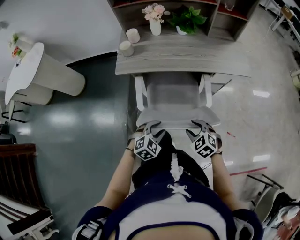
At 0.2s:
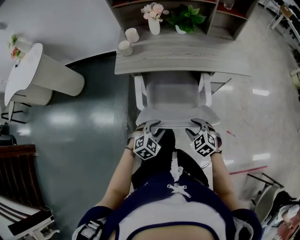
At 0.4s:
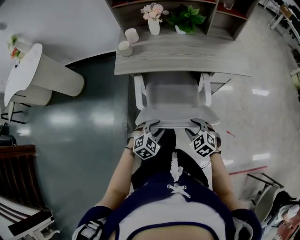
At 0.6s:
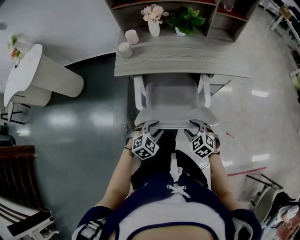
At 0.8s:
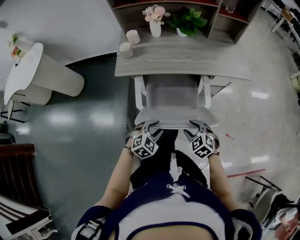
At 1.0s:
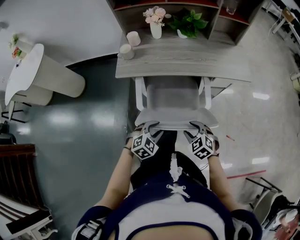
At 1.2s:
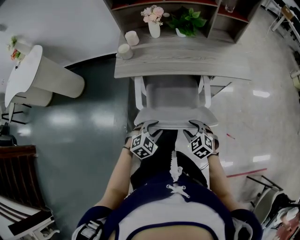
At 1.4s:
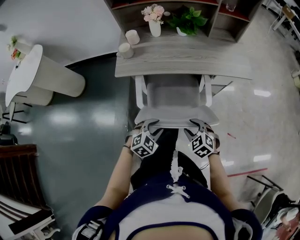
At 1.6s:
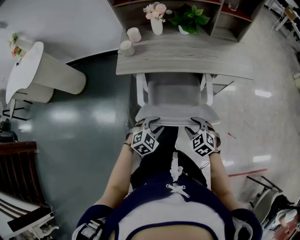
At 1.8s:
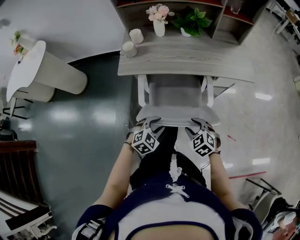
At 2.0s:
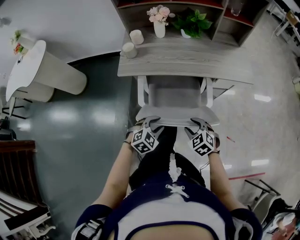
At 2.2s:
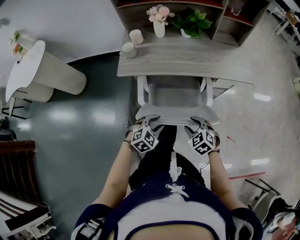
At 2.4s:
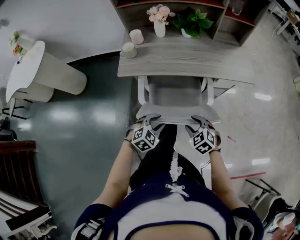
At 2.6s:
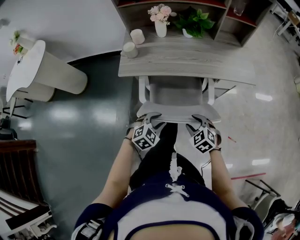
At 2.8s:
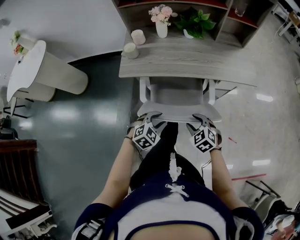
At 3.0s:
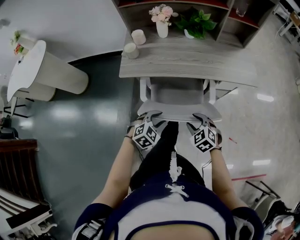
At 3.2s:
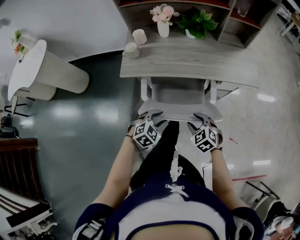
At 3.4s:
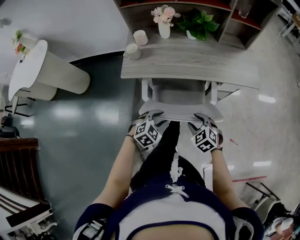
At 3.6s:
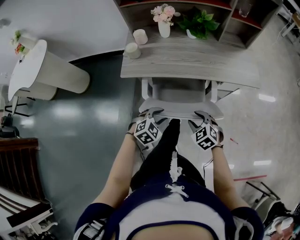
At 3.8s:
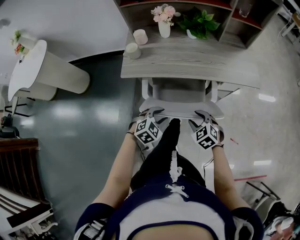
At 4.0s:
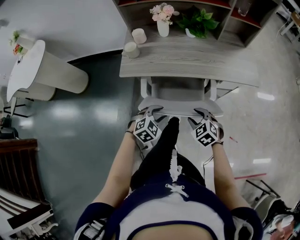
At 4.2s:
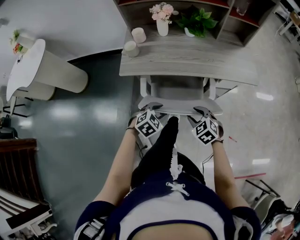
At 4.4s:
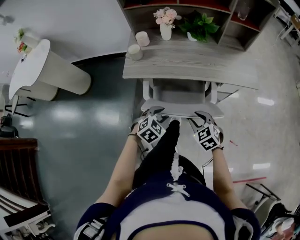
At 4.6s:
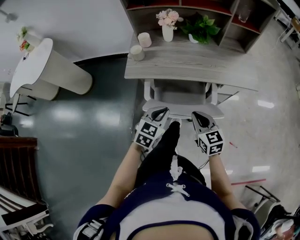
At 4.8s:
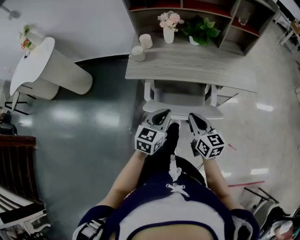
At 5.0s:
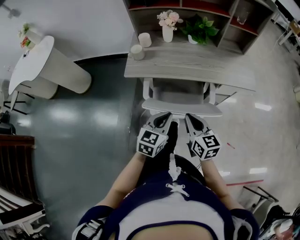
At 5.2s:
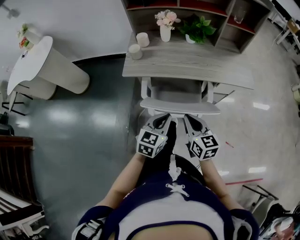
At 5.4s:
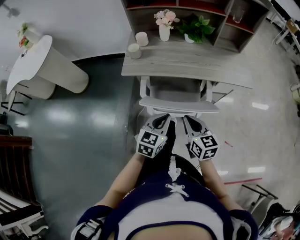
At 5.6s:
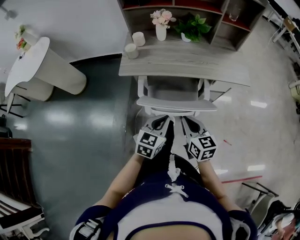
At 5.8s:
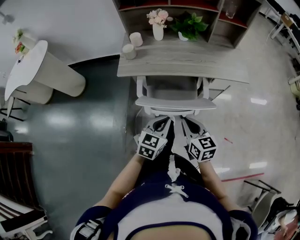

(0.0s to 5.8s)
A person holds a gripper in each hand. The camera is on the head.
0.0s - 1.4s: The grippers move only a little.
1.4s - 2.8s: Both grippers move forward, approximately 5 cm.
2.8s - 4.4s: There are only small adjustments of the grippers.
4.4s - 5.8s: Both grippers travel together upward and backward, about 10 cm. The left gripper rotates roughly 30 degrees, and closes its fingers. The right gripper changes its angle by approximately 40 degrees, and closes its fingers.

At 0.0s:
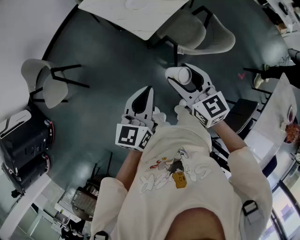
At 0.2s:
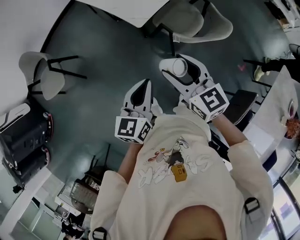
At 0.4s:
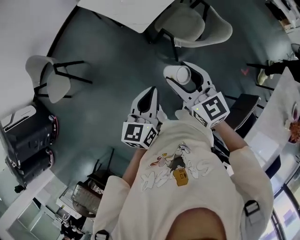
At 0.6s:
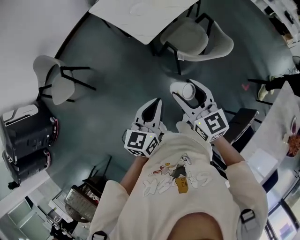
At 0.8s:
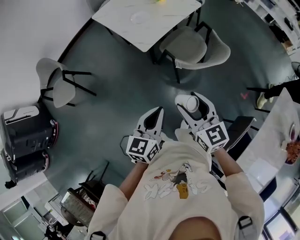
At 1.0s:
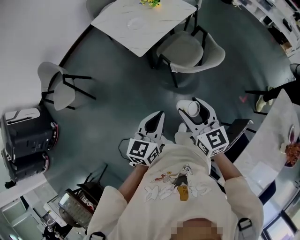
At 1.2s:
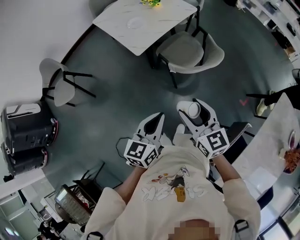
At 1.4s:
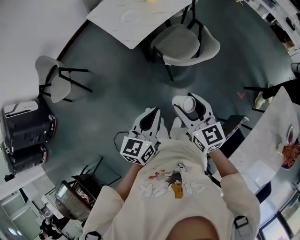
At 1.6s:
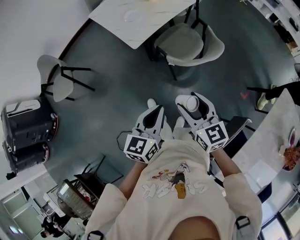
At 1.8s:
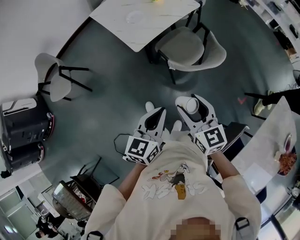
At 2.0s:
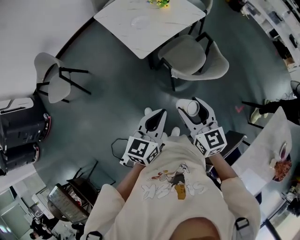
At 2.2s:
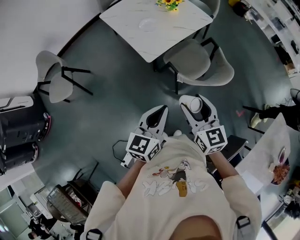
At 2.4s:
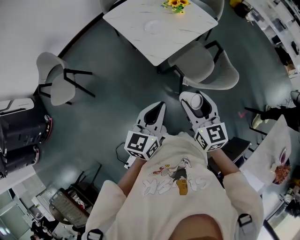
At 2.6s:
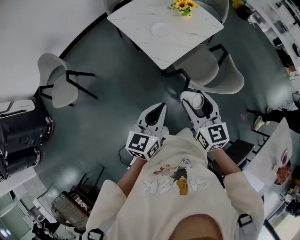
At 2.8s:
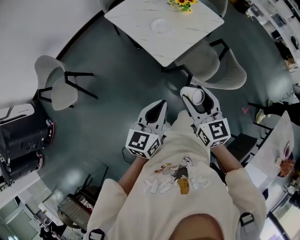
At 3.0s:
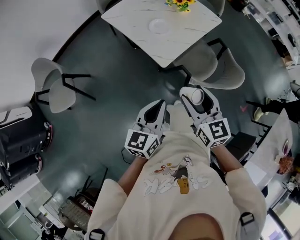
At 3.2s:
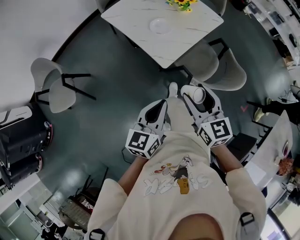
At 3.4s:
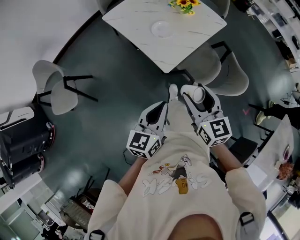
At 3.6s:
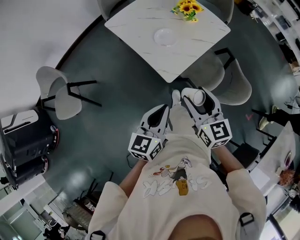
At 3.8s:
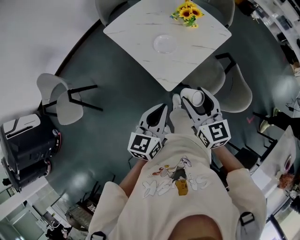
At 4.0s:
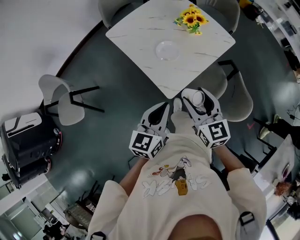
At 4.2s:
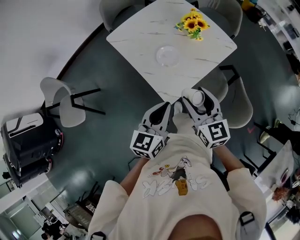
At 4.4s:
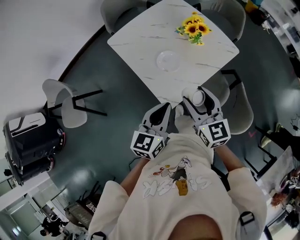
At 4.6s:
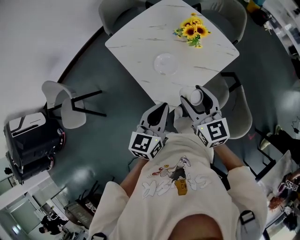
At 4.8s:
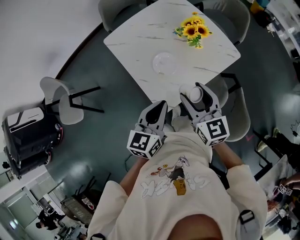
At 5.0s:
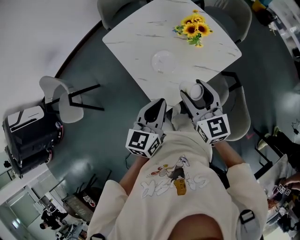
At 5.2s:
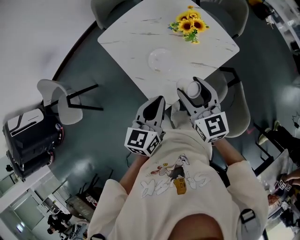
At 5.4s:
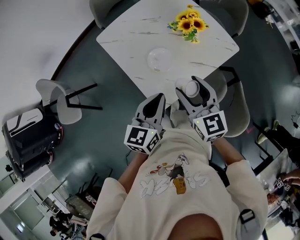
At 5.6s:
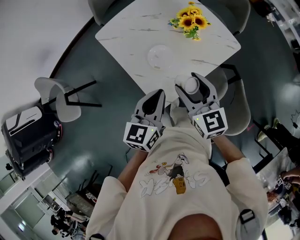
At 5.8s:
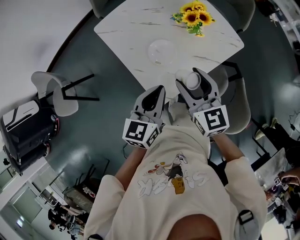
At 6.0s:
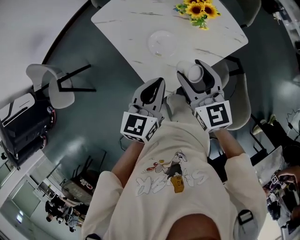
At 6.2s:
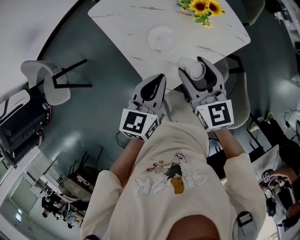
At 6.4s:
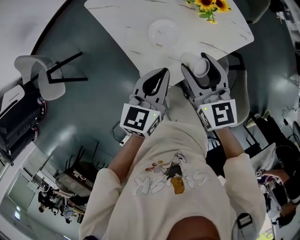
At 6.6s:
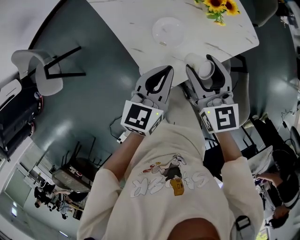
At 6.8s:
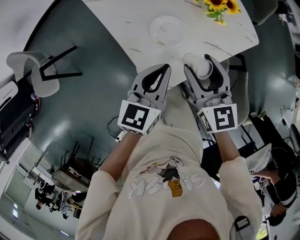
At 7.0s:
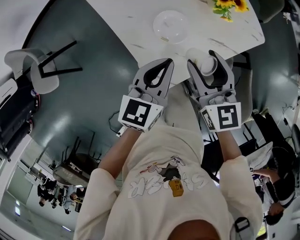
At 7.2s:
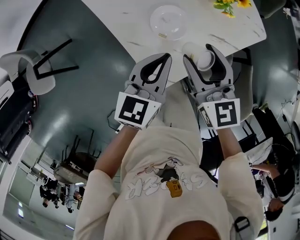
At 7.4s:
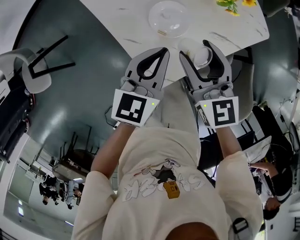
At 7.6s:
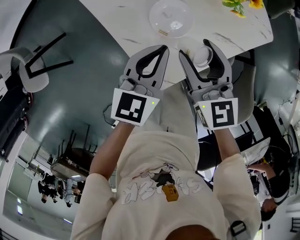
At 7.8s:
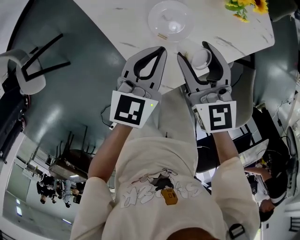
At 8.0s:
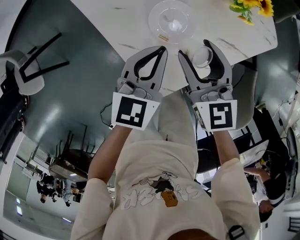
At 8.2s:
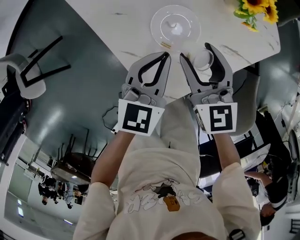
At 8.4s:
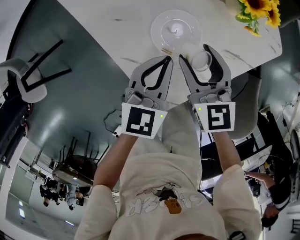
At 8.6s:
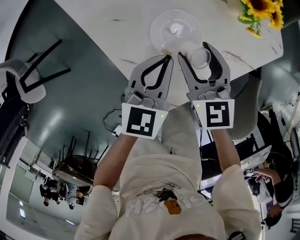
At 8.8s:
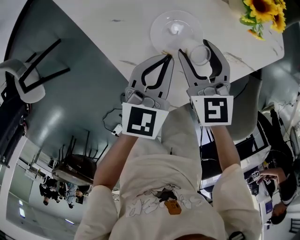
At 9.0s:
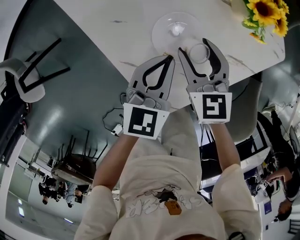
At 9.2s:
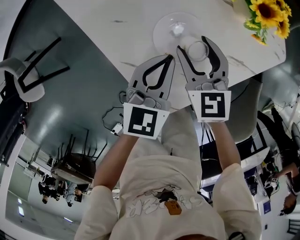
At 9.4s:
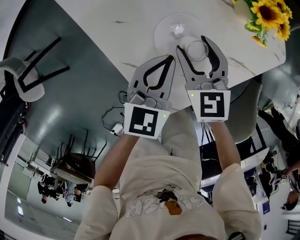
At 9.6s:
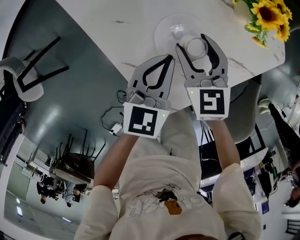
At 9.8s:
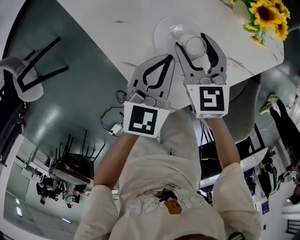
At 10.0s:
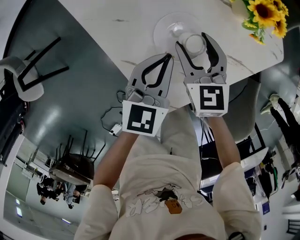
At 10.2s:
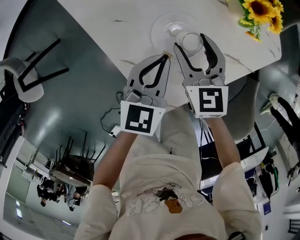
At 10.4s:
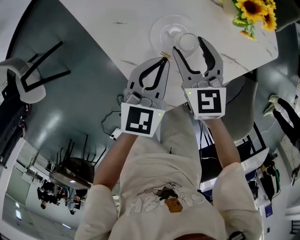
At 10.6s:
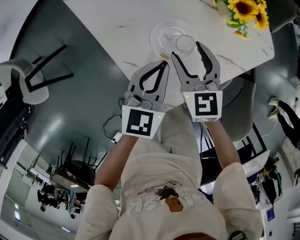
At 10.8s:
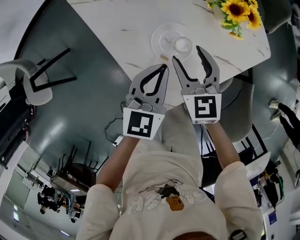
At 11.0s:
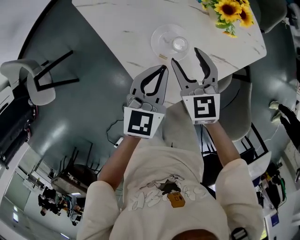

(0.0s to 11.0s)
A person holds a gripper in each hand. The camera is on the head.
0.0s - 1.6s: Both grippers travel together to the right and backward, approximately 25 cm.
1.6s - 3.2s: Both grippers travel together to the left and forward, approximately 30 cm.
3.2s - 4.8s: Both grippers move forward, some 30 cm.
4.8s - 6.2s: Both grippers move forward, about 5 cm.
6.2s - 7.8s: Both grippers travel together downward and forward, roughly 15 cm.
7.8s - 9.4s: The right gripper travels downward and forward by some 15 cm. The left gripper travels downward by approximately 5 cm.
9.4s - 11.0s: Both grippers travel together upward, some 10 cm.

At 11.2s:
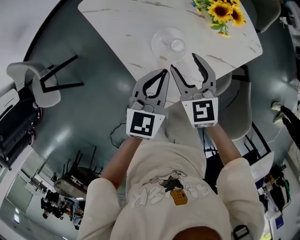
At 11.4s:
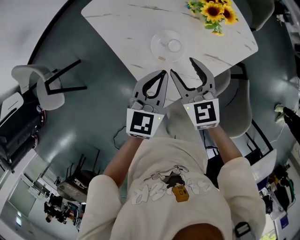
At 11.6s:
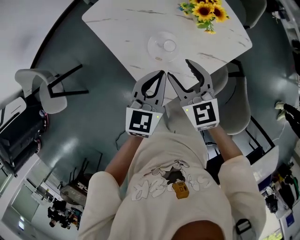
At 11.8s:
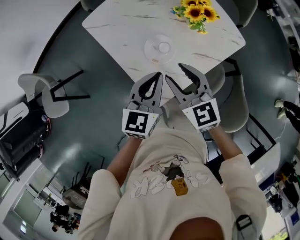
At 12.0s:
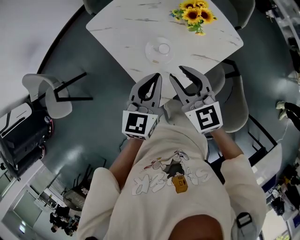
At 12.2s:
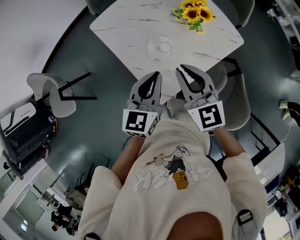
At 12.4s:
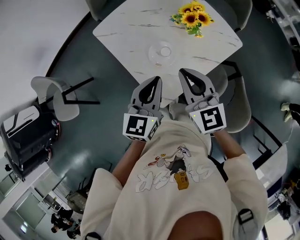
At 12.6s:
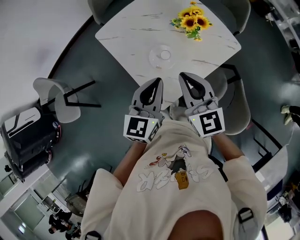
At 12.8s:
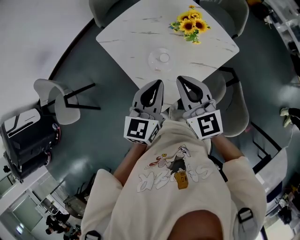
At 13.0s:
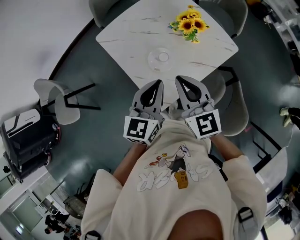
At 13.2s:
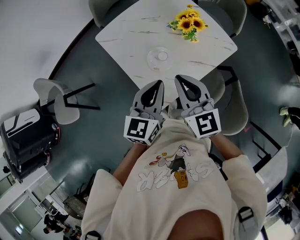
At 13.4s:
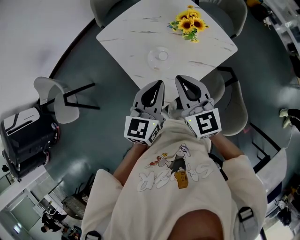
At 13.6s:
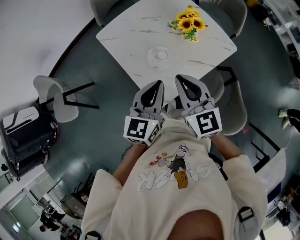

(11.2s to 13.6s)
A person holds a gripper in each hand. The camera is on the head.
11.2s - 12.4s: The grippers both shift upward and backward by roughly 15 cm. The right gripper closes up.
12.4s - 13.6s: The grippers make only small movements.

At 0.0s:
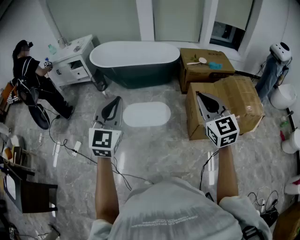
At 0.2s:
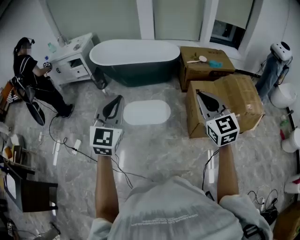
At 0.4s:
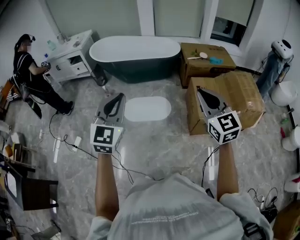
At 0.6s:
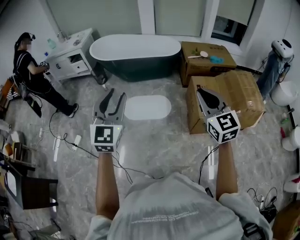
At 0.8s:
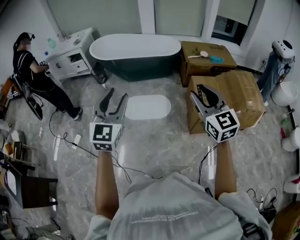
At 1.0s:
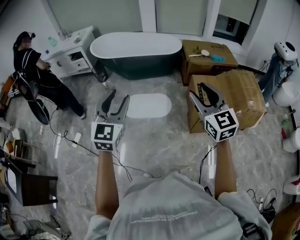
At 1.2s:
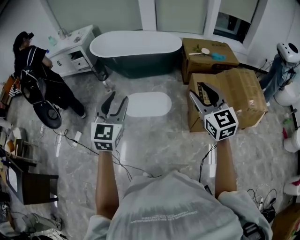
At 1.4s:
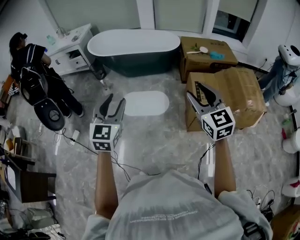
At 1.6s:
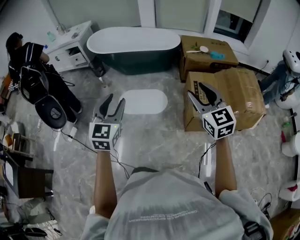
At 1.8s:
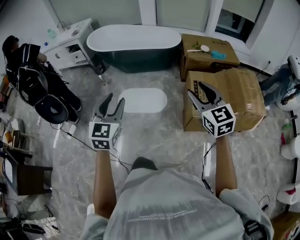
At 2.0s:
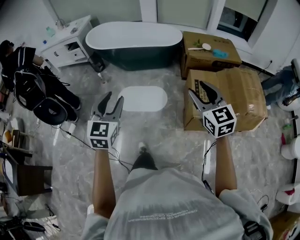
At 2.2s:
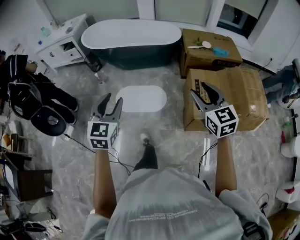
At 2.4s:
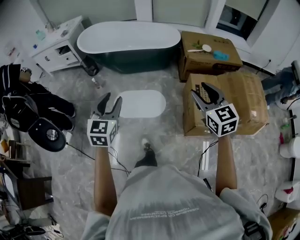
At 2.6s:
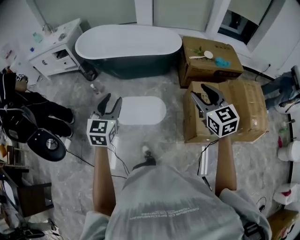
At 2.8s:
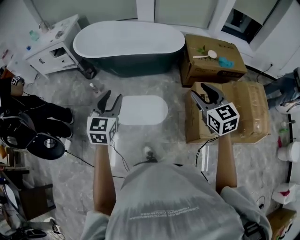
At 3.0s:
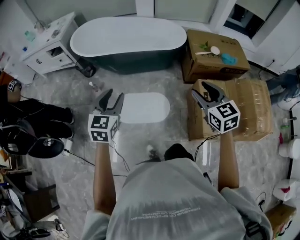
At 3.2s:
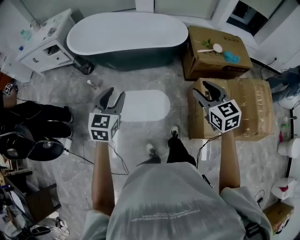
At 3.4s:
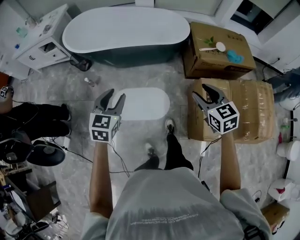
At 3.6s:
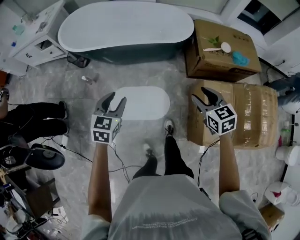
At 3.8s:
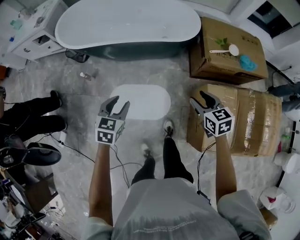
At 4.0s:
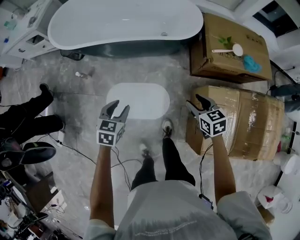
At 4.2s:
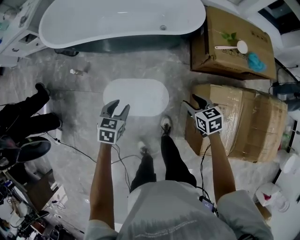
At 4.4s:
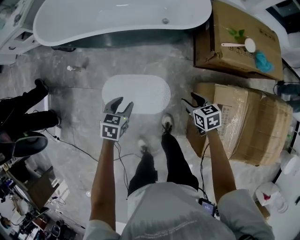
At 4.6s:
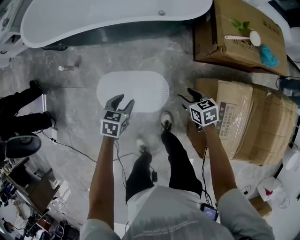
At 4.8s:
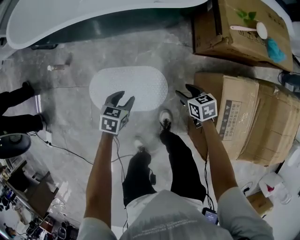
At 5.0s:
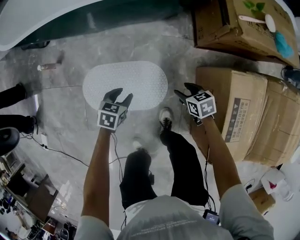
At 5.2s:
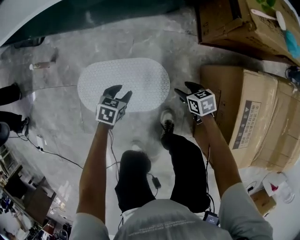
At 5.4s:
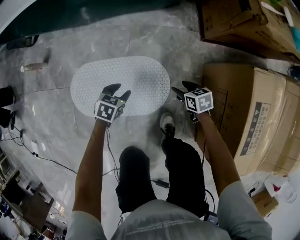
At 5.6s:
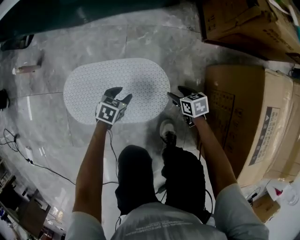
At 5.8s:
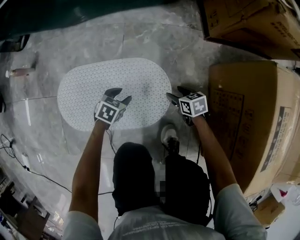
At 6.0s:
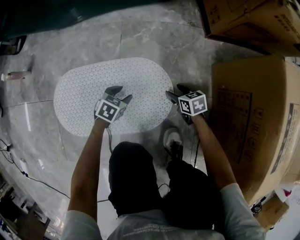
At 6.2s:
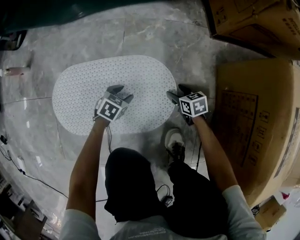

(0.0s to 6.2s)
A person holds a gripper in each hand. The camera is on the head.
0.0s - 1.6s: The left gripper shifts roughly 10 cm downward and to the right, and opens; the right gripper heads to the right and downward, covering some 10 cm, and opens up.
1.6s - 3.2s: The two grippers go roughly 40 cm forward.
3.2s - 4.6s: The grippers both shift downward and forward by about 50 cm. The right gripper rotates about 40 degrees; the left gripper tilts its fingers approximately 30 degrees downward.
4.6s - 6.2s: The grippers both shift downward by some 60 cm. The left gripper swivels some 20 degrees.
